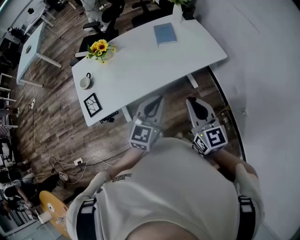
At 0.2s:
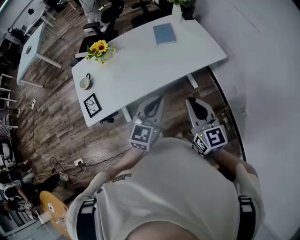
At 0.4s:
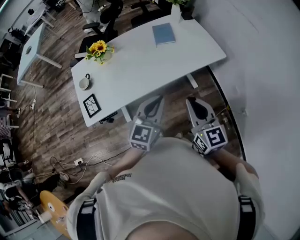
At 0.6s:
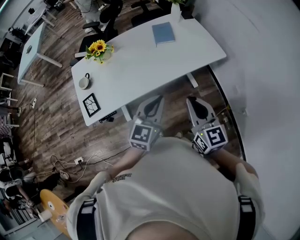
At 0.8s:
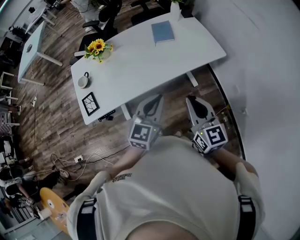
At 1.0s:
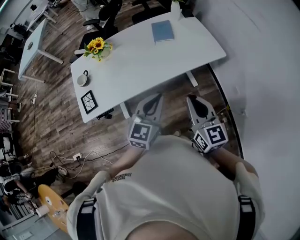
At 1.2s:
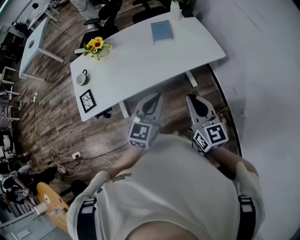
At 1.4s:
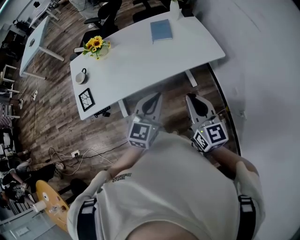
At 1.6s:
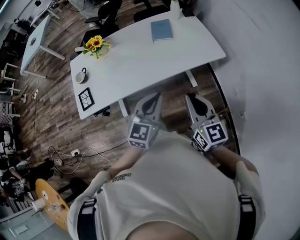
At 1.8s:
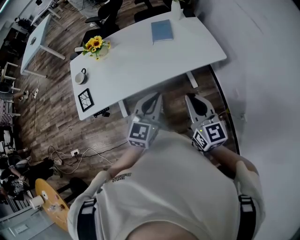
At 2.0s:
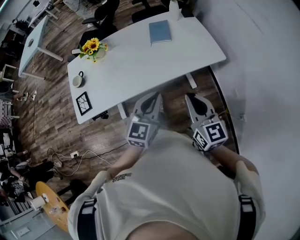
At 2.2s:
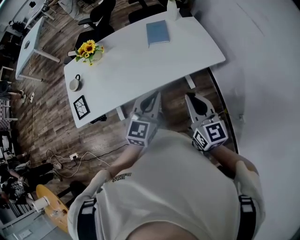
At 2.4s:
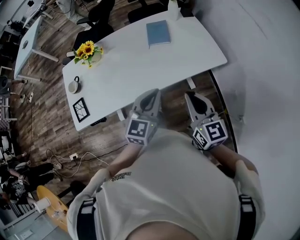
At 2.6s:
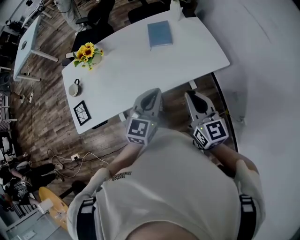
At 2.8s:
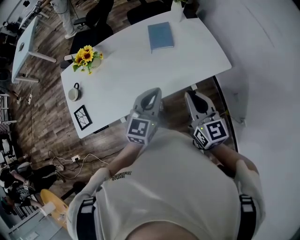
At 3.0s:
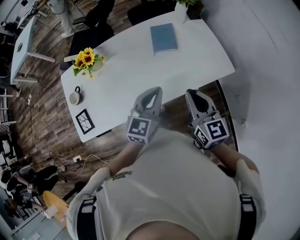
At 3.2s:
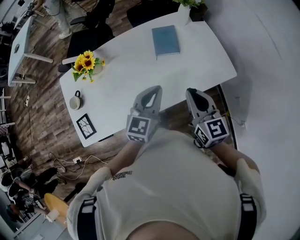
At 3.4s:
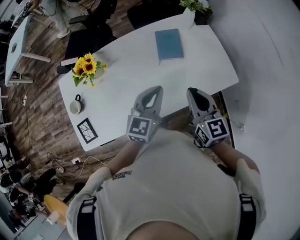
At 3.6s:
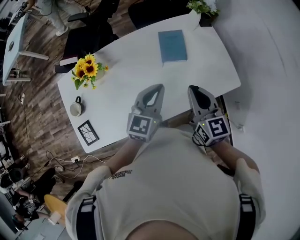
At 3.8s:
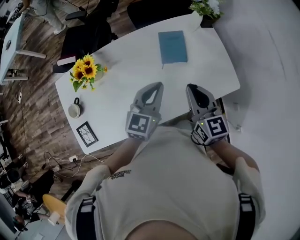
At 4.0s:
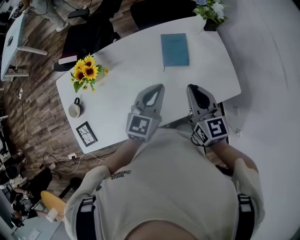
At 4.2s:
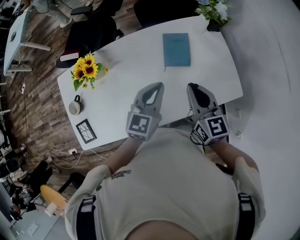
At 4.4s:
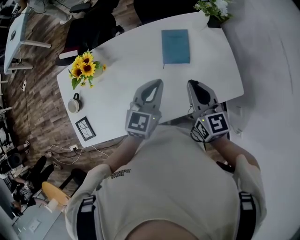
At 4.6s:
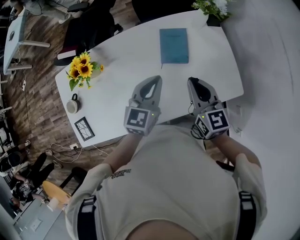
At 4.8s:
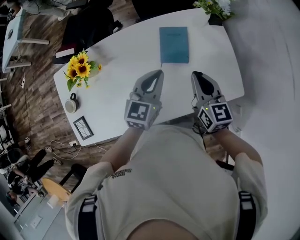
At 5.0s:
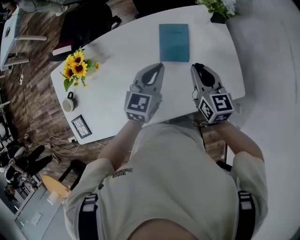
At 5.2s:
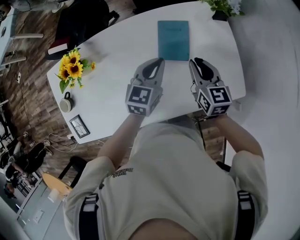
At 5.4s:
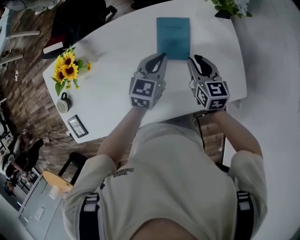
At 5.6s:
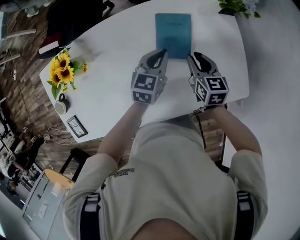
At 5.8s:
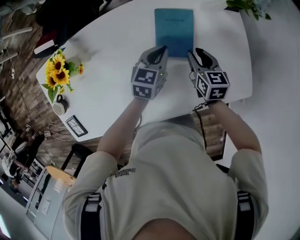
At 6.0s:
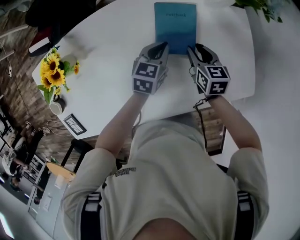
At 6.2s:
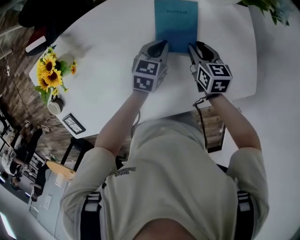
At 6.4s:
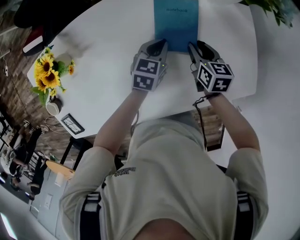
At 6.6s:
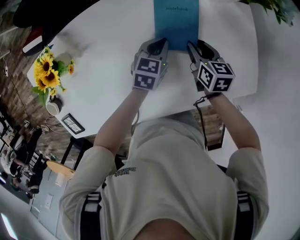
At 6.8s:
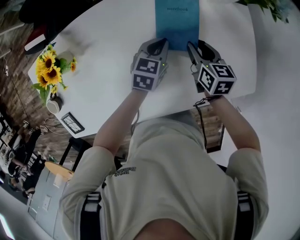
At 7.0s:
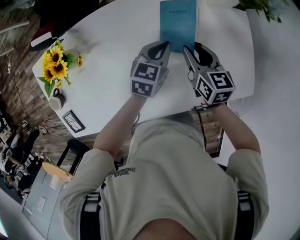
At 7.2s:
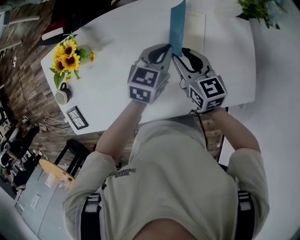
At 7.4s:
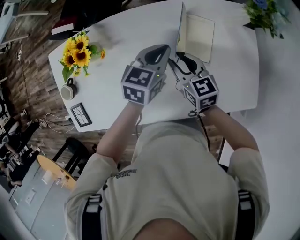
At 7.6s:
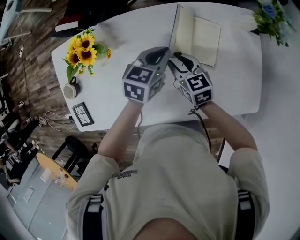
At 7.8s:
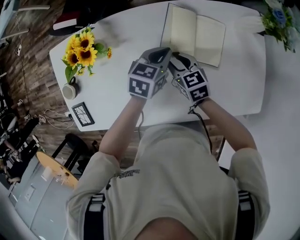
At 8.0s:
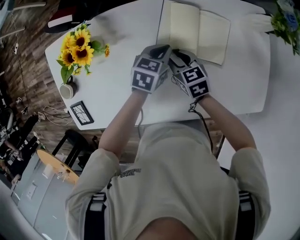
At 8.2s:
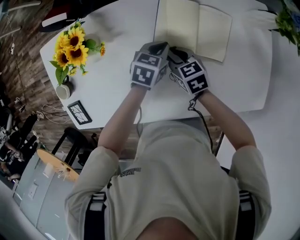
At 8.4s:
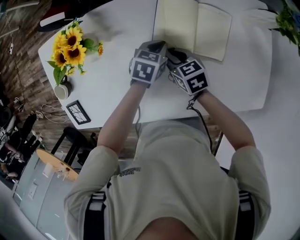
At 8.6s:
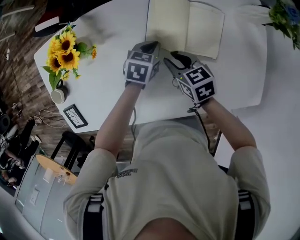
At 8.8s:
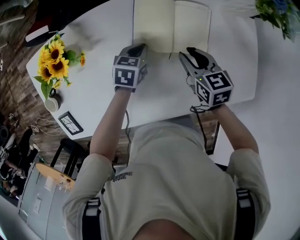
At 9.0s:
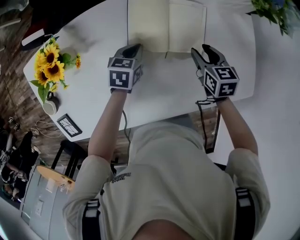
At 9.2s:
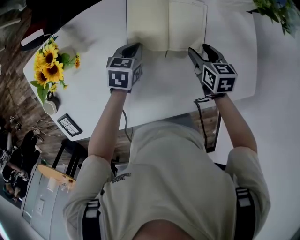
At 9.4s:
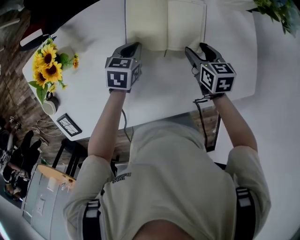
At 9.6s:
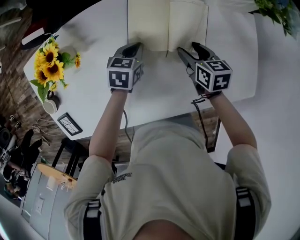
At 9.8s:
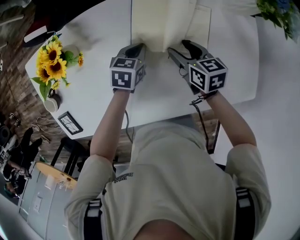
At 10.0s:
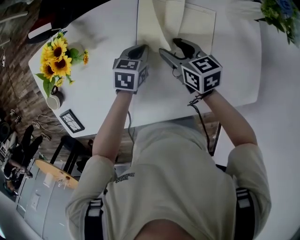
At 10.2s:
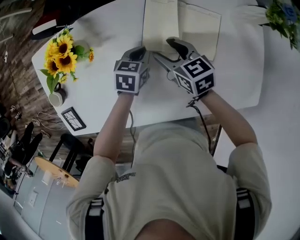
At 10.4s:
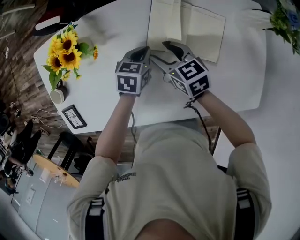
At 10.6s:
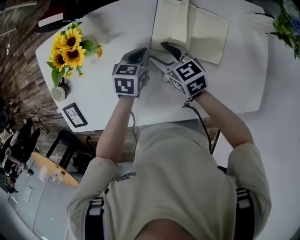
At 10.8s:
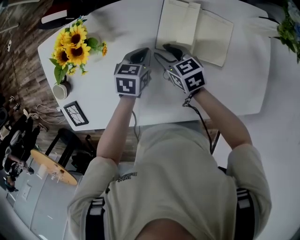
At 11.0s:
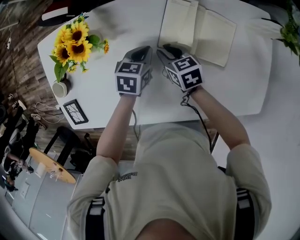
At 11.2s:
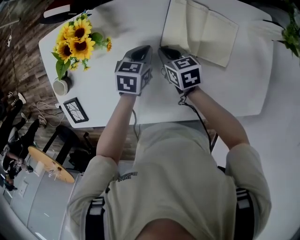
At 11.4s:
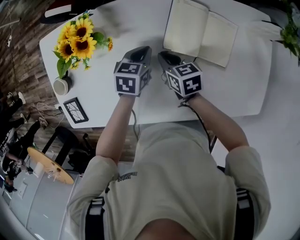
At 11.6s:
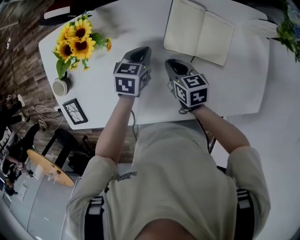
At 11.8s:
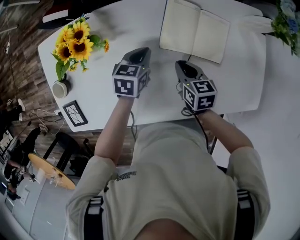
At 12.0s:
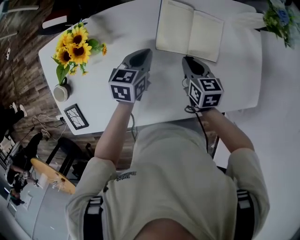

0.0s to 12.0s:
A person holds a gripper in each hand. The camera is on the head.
0.0s to 1.6s: The two grippers go approximately 5 cm to the right.
1.6s to 3.0s: The two grippers go about 20 cm forward.
3.0s to 4.4s: Both grippers move forward, roughly 20 cm.
4.4s to 6.0s: Both grippers travel together downward and forward, some 30 cm. The right gripper turns by some 30 degrees, and opens. The left gripper changes its angle by approximately 30 degrees.
6.0s to 7.6s: The right gripper travels to the left by about 20 cm, and rotates roughly 30 degrees. The left gripper heads upward and to the left, covering about 15 cm.
7.6s to 9.0s: The left gripper is displaced downward by some 15 cm, while the right gripper is displaced to the right by some 15 cm, and turns by about 20 degrees.
9.0s to 10.4s: The right gripper goes approximately 20 cm to the left, and changes its angle by roughly 30 degrees.
10.4s to 12.0s: The left gripper travels upward by roughly 5 cm, while the right gripper goes some 10 cm to the right, changes its angle by some 30 degrees, and closes its fingers.

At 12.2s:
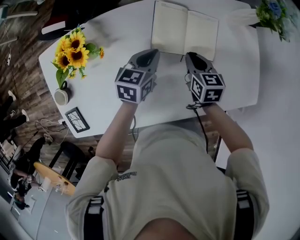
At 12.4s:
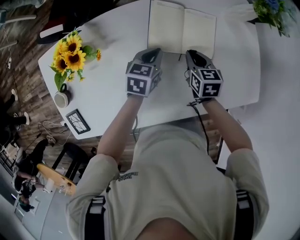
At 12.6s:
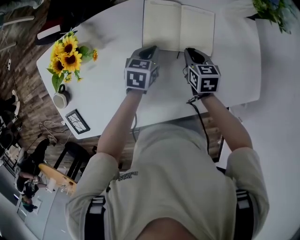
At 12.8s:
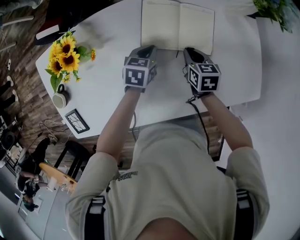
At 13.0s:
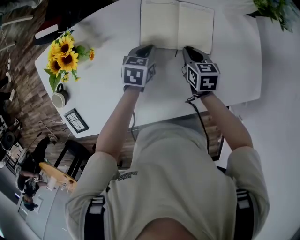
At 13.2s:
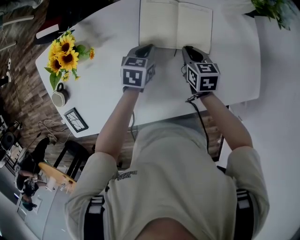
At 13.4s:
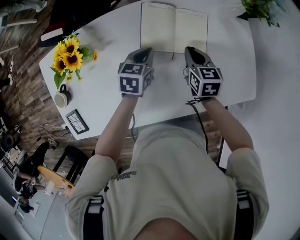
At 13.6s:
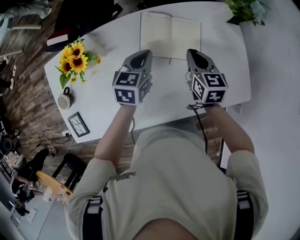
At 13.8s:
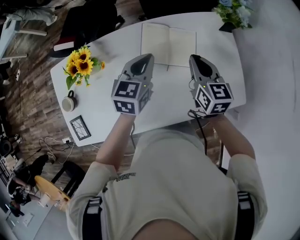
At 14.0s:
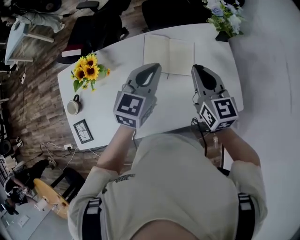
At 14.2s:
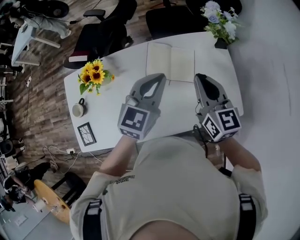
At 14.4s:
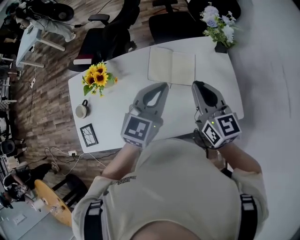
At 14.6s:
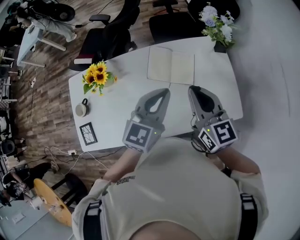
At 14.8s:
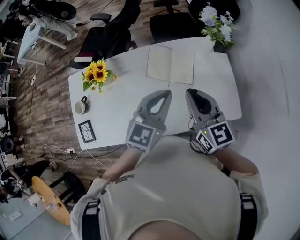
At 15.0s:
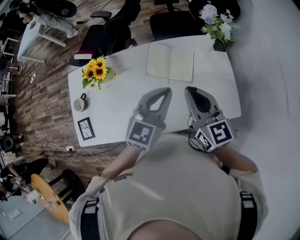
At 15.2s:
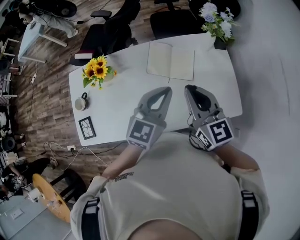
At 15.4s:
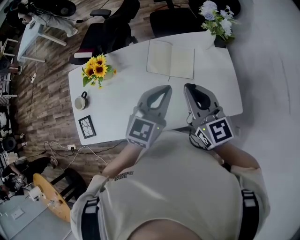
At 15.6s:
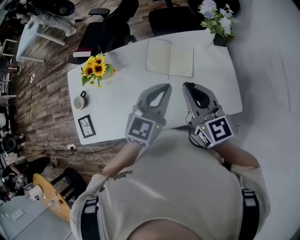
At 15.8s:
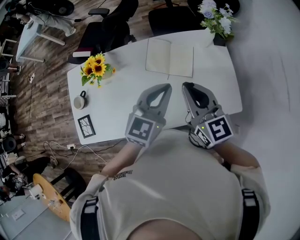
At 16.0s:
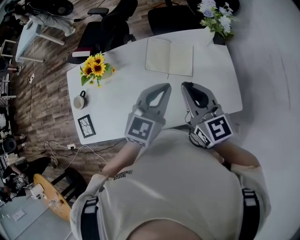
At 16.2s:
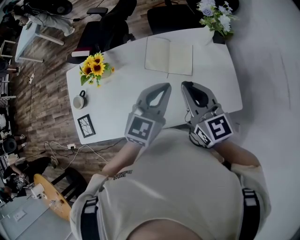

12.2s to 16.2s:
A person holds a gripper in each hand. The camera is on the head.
12.2s to 13.6s: The grippers both shift upward by some 5 cm.
13.6s to 14.8s: The right gripper travels upward and backward by some 25 cm, and rotates some 30 degrees. The left gripper goes approximately 25 cm upward, backward and to the right, and changes its angle by about 30 degrees.
14.8s to 16.2s: The grippers move only a little.

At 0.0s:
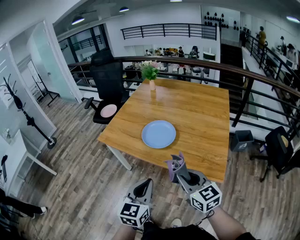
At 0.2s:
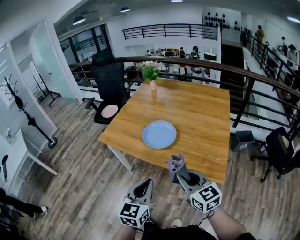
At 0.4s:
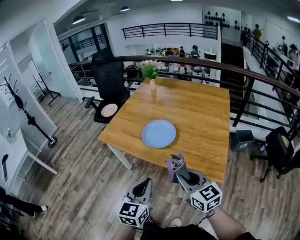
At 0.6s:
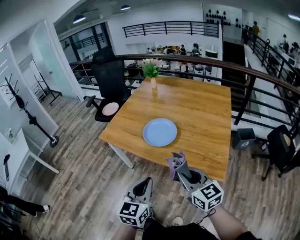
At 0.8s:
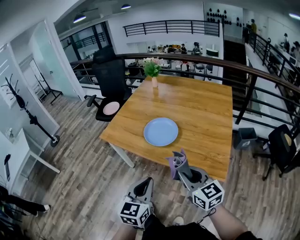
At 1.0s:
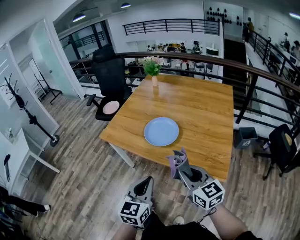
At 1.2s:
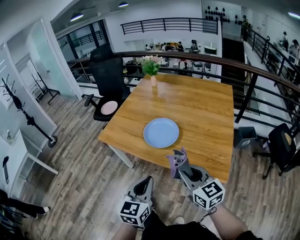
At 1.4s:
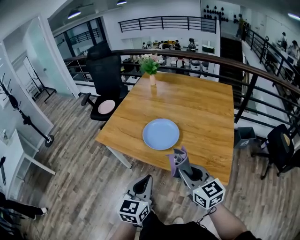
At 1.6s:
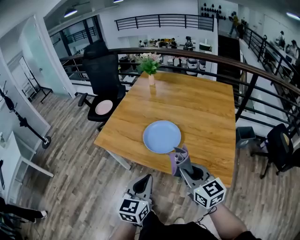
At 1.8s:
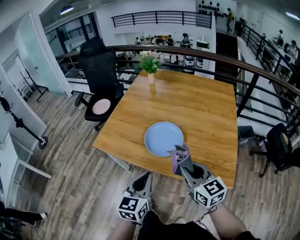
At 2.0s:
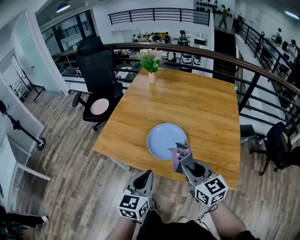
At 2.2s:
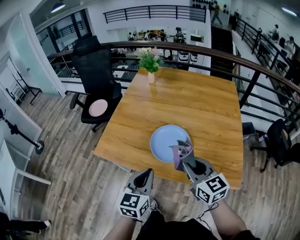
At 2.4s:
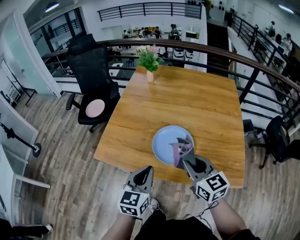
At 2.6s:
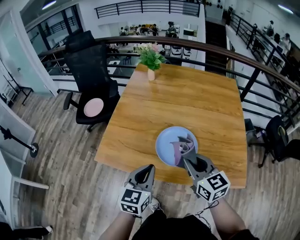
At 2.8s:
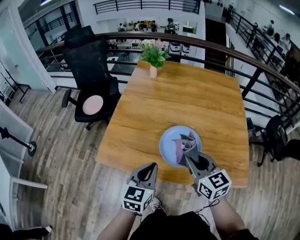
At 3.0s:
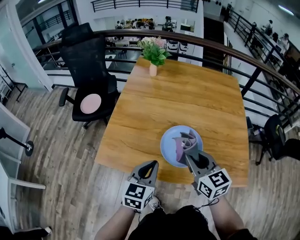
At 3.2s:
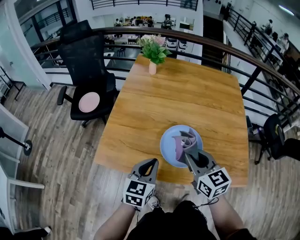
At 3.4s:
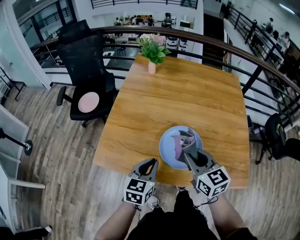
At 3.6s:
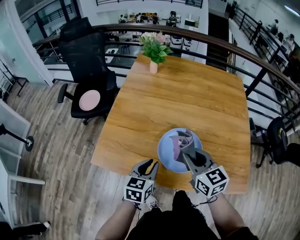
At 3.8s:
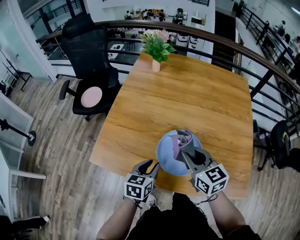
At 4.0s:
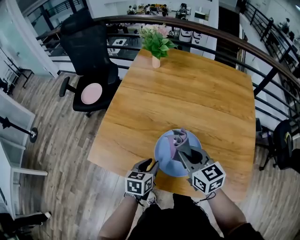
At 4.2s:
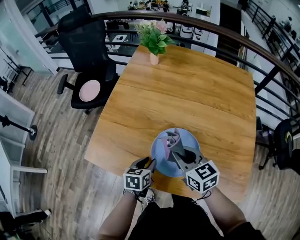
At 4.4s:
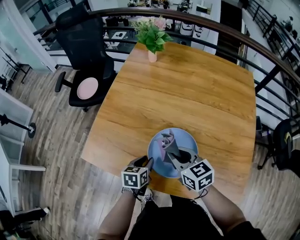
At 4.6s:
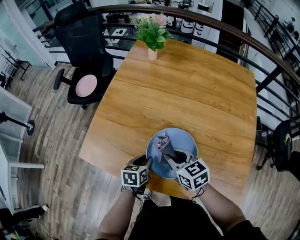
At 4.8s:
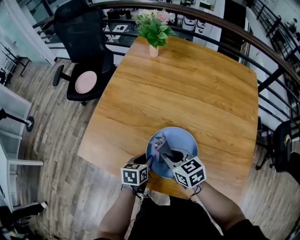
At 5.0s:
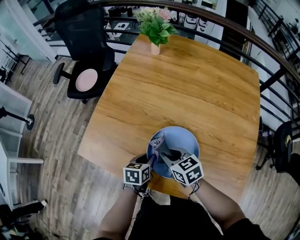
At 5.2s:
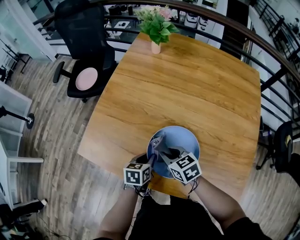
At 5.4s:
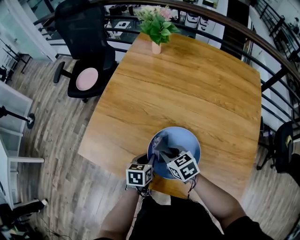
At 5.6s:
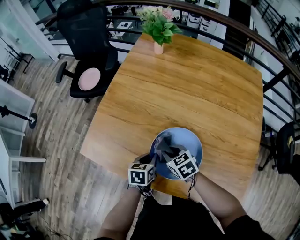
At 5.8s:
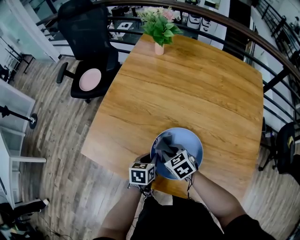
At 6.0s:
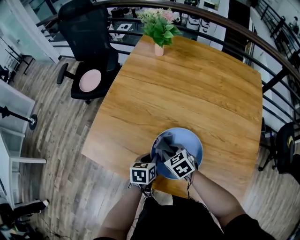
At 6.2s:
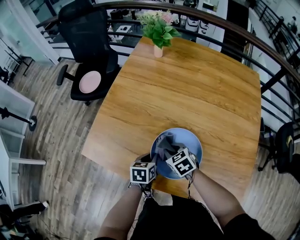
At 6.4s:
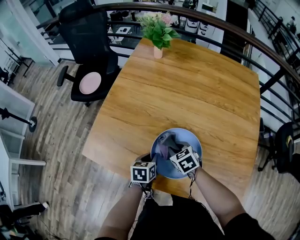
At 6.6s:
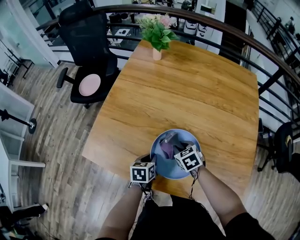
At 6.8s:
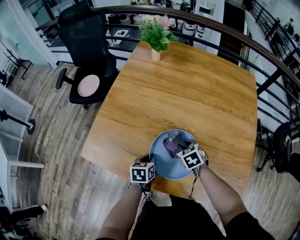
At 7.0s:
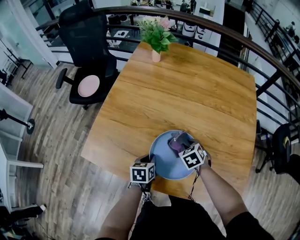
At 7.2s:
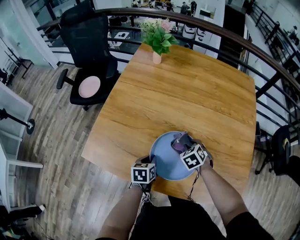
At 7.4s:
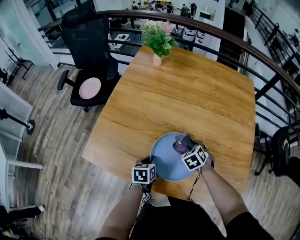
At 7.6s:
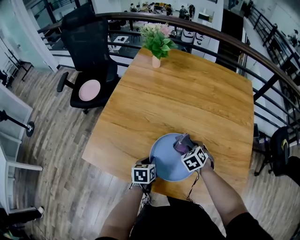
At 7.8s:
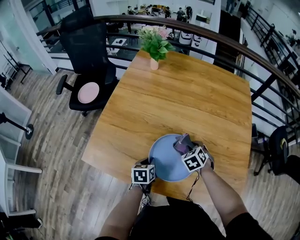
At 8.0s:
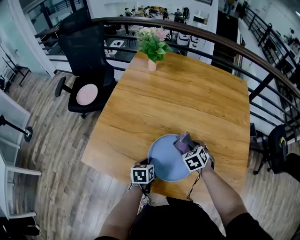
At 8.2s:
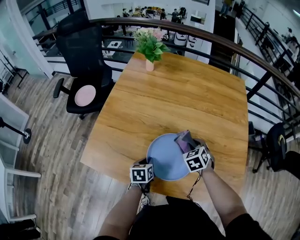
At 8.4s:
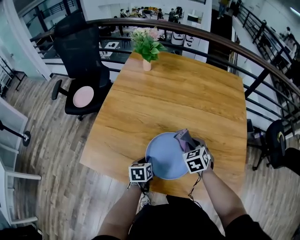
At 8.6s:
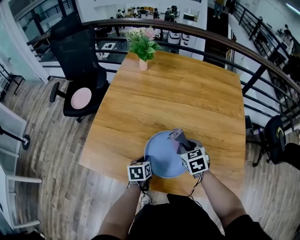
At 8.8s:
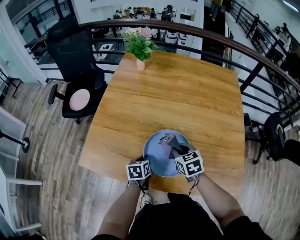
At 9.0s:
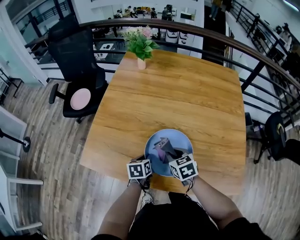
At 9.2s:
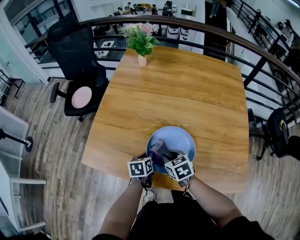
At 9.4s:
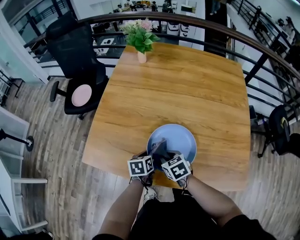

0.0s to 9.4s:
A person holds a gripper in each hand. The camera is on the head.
0.0s to 1.6s: The two grippers go roughly 10 cm forward.
1.6s to 3.2s: Both grippers move forward and to the left, some 25 cm.
3.2s to 4.8s: The two grippers go approximately 20 cm downward and forward. The right gripper changes its angle by approximately 30 degrees, while the left gripper swivels some 40 degrees, and opens up.
4.8s to 6.2s: The right gripper heads downward, covering about 10 cm, and swivels some 20 degrees.
6.2s to 7.8s: The right gripper goes some 15 cm to the right, and turns by about 30 degrees.
7.8s to 9.4s: The right gripper heads to the left and backward, covering roughly 15 cm, and rotates approximately 30 degrees.
